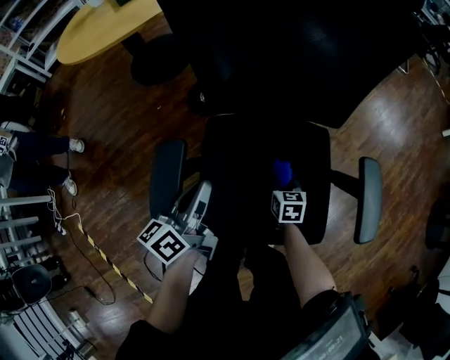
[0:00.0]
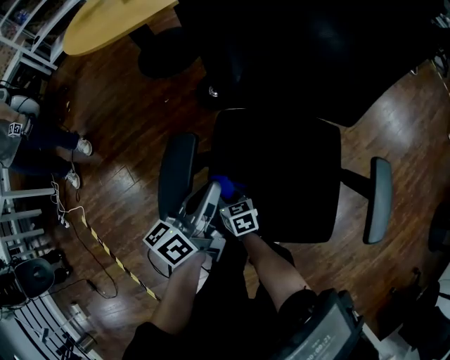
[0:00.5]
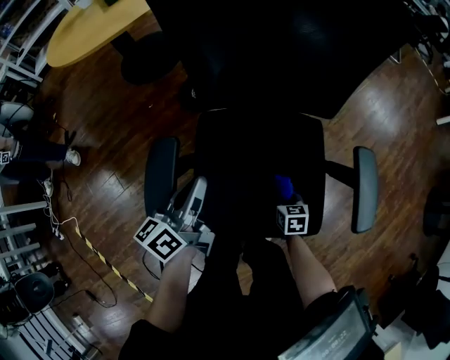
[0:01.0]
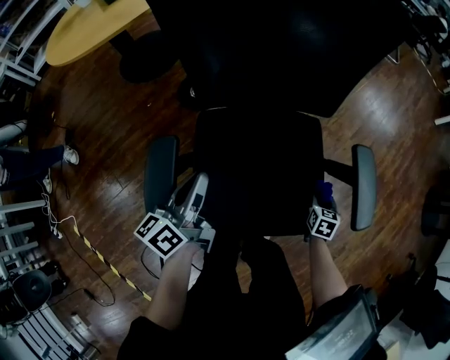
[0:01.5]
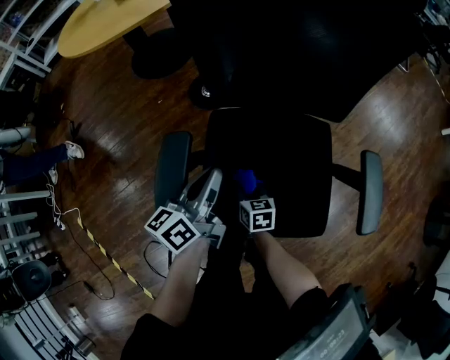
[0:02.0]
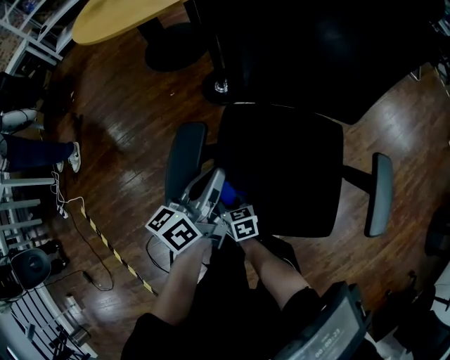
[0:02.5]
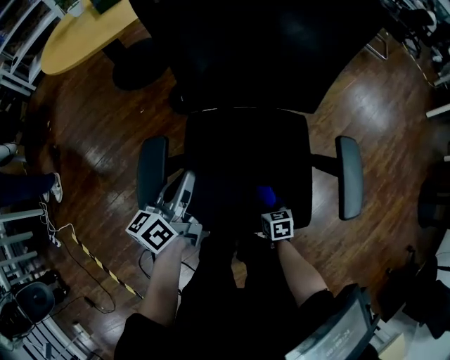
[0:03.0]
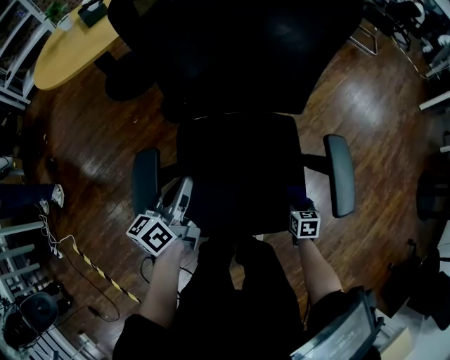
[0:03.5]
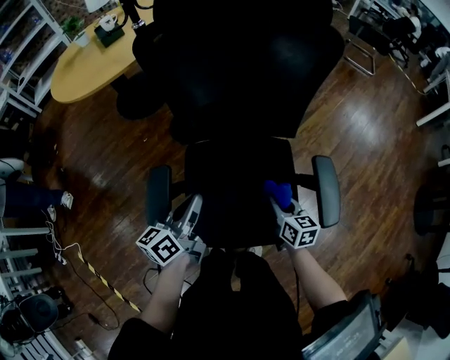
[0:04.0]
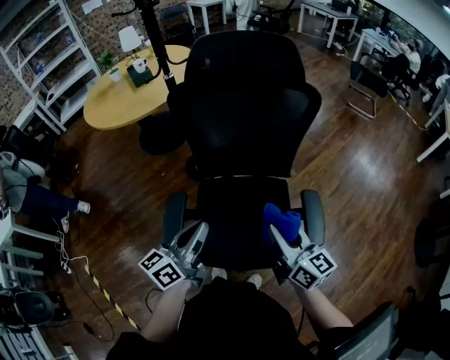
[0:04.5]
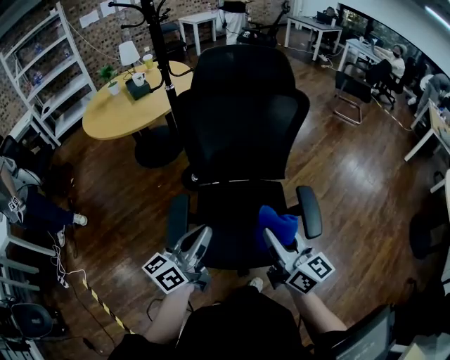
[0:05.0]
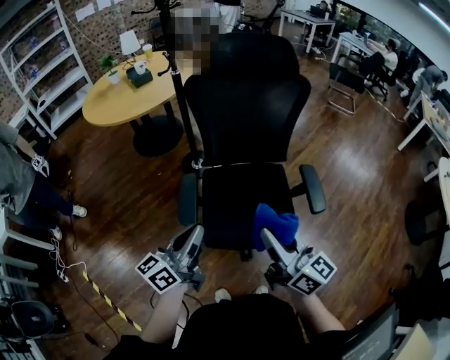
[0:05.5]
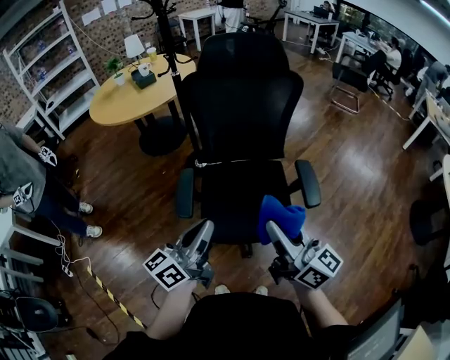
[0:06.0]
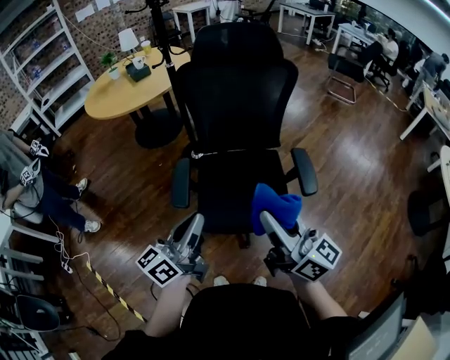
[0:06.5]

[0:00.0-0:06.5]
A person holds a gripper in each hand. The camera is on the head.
0:02.0 to 0:04.5: The left gripper goes roughly 20 cm upward and backward. The right gripper travels upward and to the right by roughly 50 cm, and angles its fingers upward, by about 40 degrees.
0:04.5 to 0:06.5: The left gripper shifts some 20 cm backward. The right gripper heads backward and upward, covering roughly 25 cm.

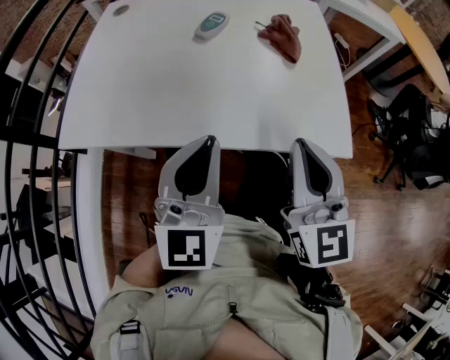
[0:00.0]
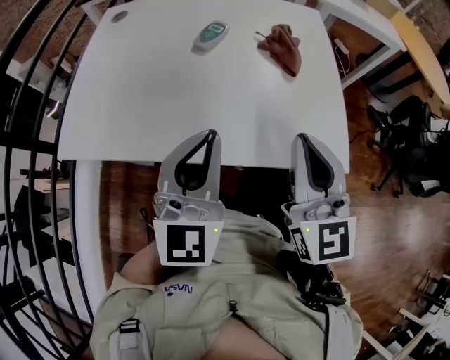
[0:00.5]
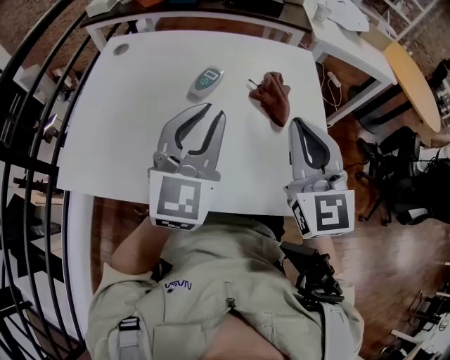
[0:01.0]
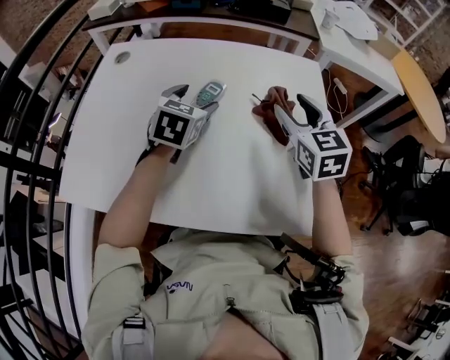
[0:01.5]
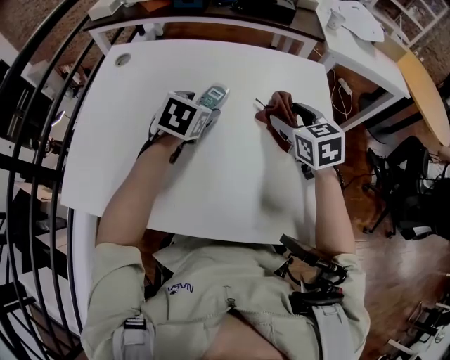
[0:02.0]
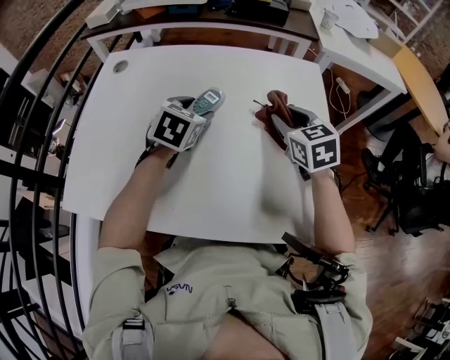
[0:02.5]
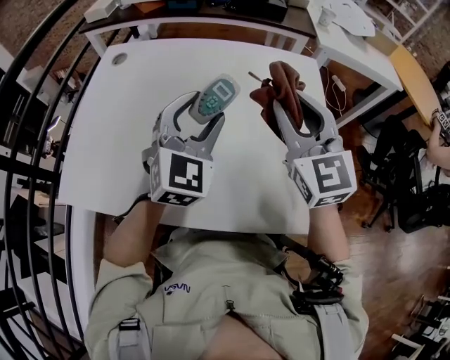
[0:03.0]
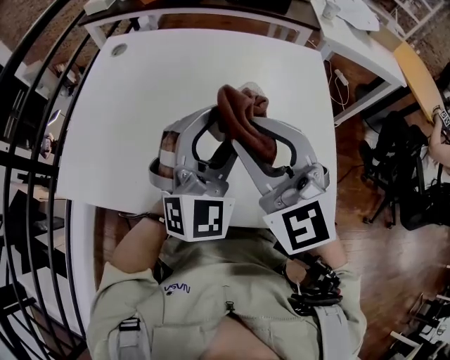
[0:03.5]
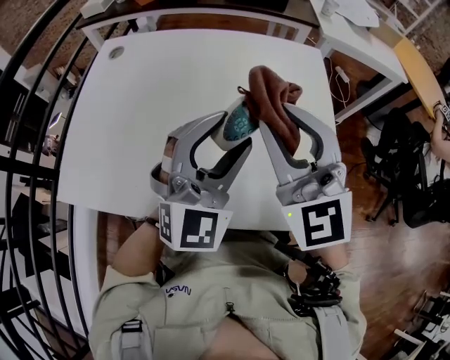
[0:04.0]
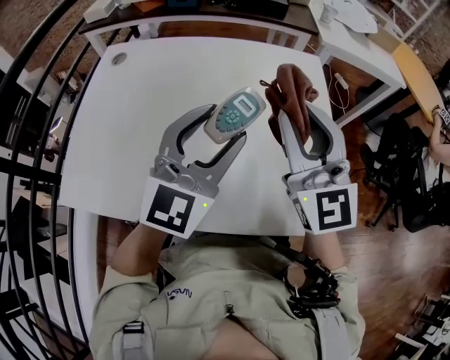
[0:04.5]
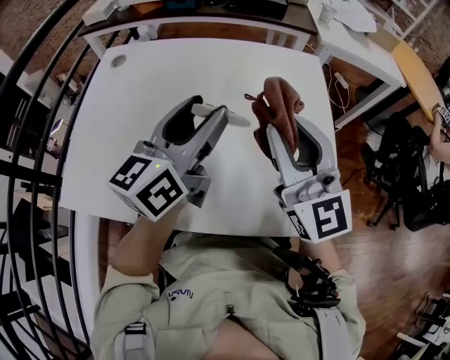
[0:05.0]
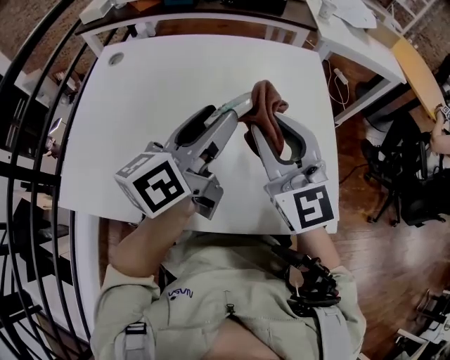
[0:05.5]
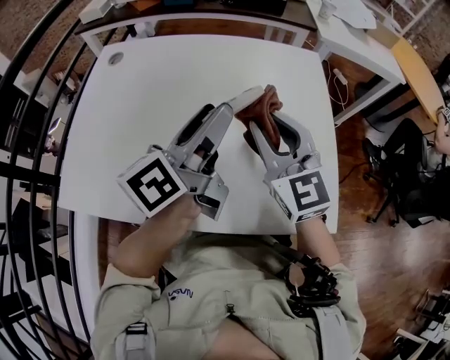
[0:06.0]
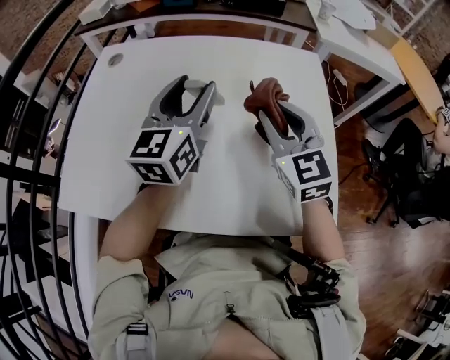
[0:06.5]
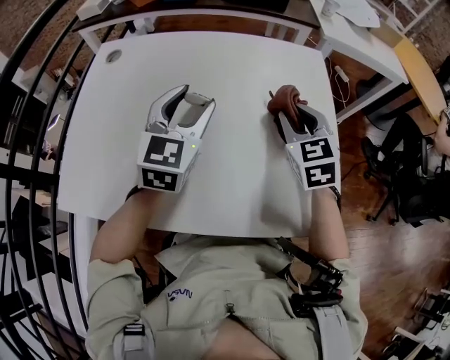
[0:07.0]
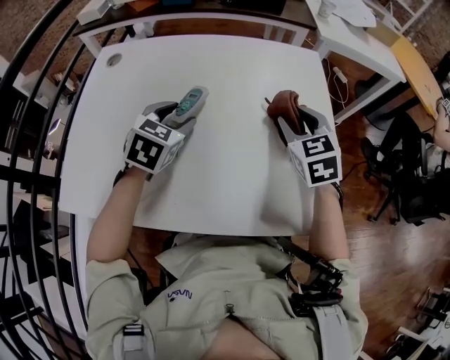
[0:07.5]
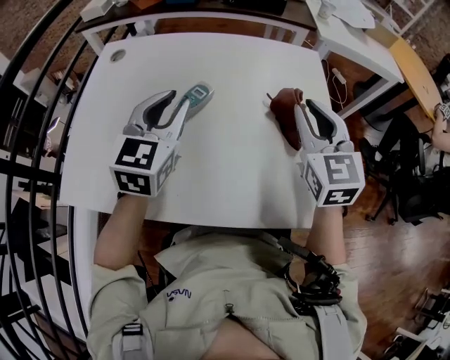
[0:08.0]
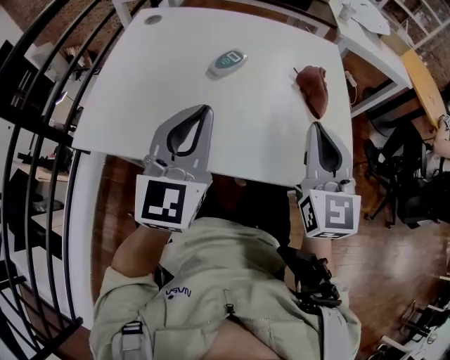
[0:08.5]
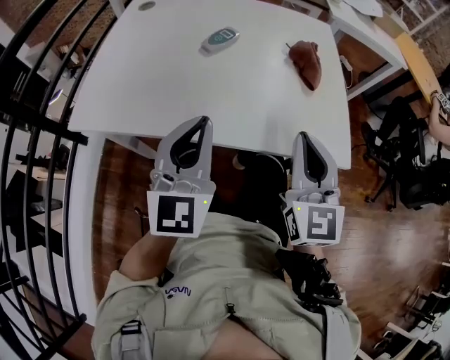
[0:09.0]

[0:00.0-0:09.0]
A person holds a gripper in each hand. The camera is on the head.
0:00.0 to 0:02.0: Both grippers travel together forward, approximately 35 cm. The right gripper rotates roughly 30 degrees, and opens. Meanwhile the left gripper tips its fingers downward by some 40 degrees, and opens its fingers.
0:02.0 to 0:04.5: Both grippers travel together upward and backward, approximately 20 cm. The right gripper tilts its fingers some 40 degrees upward, and closes up. The left gripper tilts its fingers about 50 degrees upward.
0:04.5 to 0:07.0: The left gripper is displaced forward, downward and to the left by about 15 cm, and swivels roughly 20 degrees. Meanwhile the right gripper heads downward and forward, covering about 20 cm, and tilts its fingers about 40 degrees downward.
0:07.0 to 0:09.0: The grippers both shift backward by about 25 cm. The left gripper closes, while the right gripper swivels approximately 30 degrees, and closes its fingers.

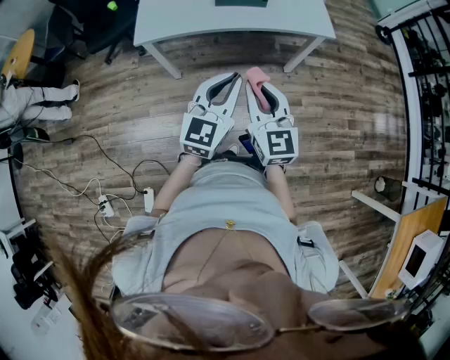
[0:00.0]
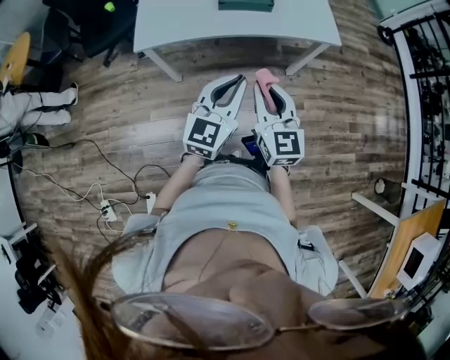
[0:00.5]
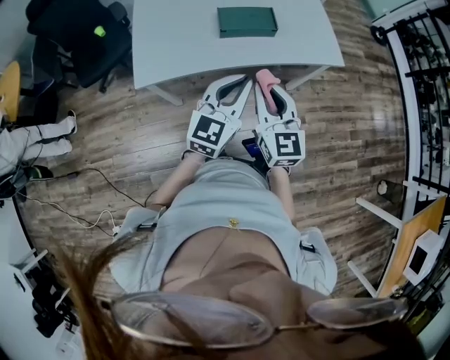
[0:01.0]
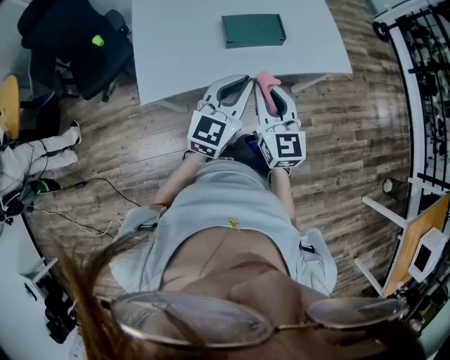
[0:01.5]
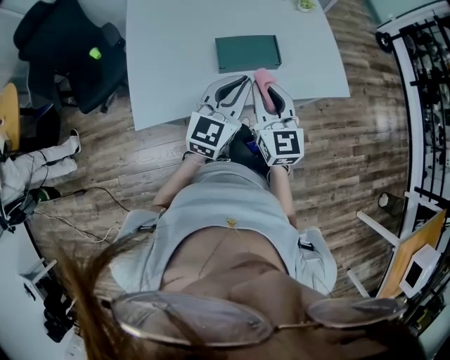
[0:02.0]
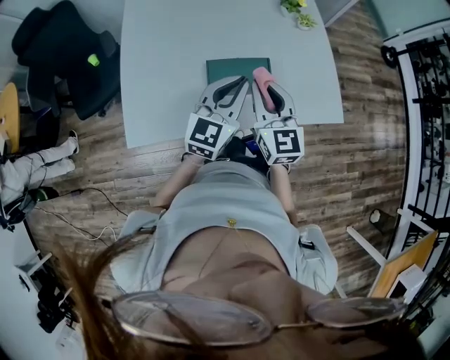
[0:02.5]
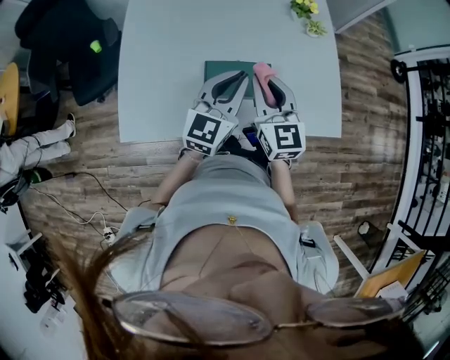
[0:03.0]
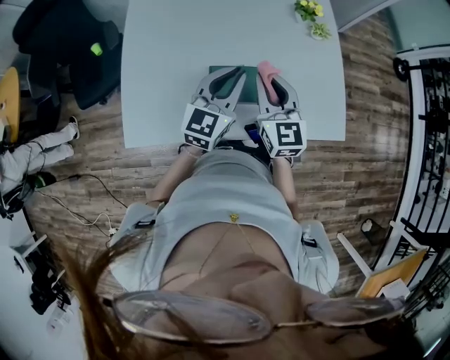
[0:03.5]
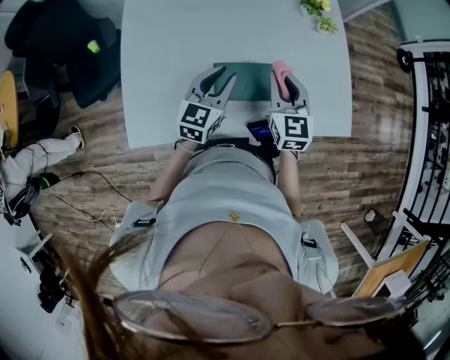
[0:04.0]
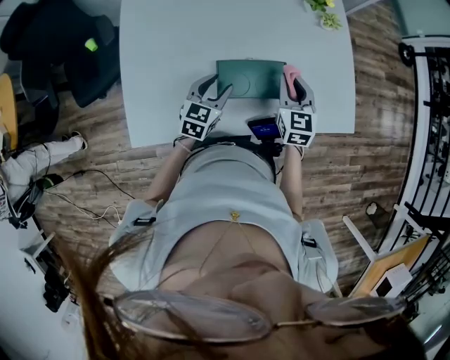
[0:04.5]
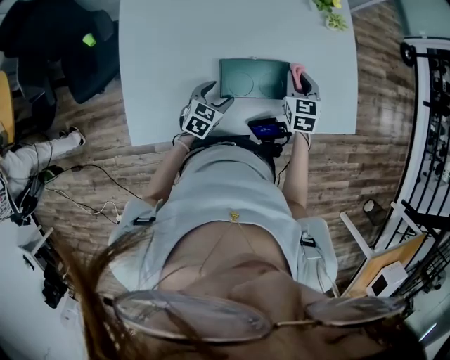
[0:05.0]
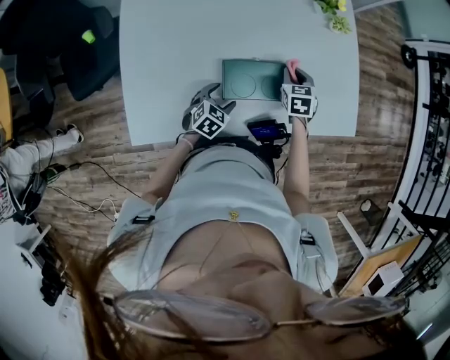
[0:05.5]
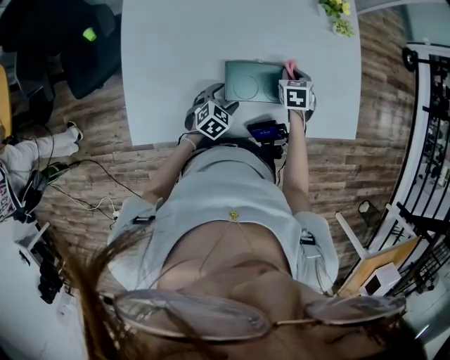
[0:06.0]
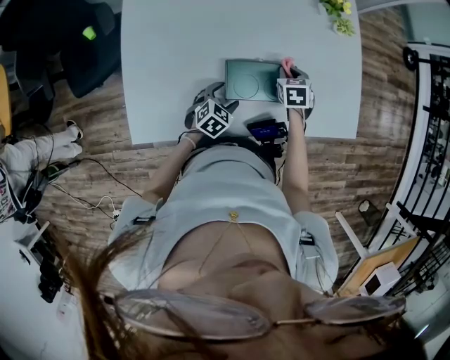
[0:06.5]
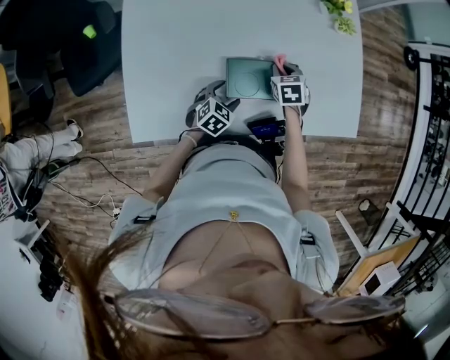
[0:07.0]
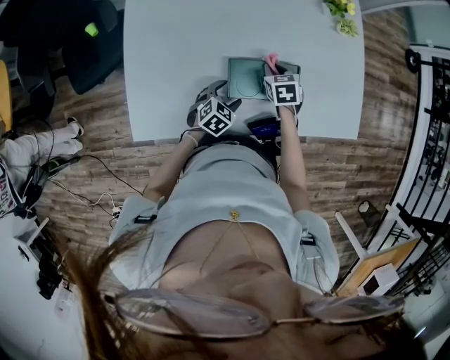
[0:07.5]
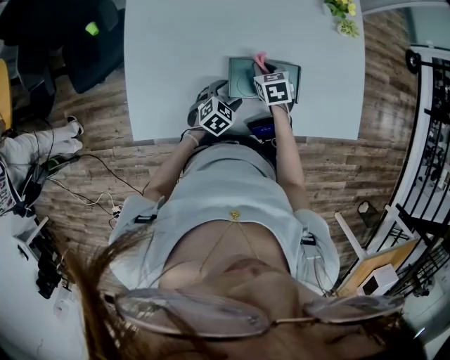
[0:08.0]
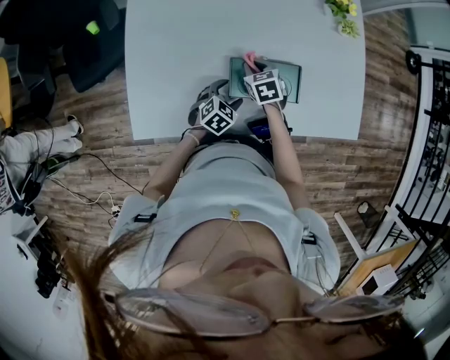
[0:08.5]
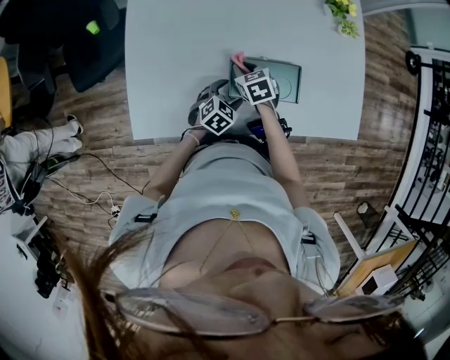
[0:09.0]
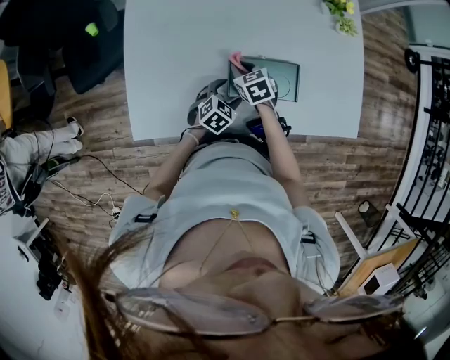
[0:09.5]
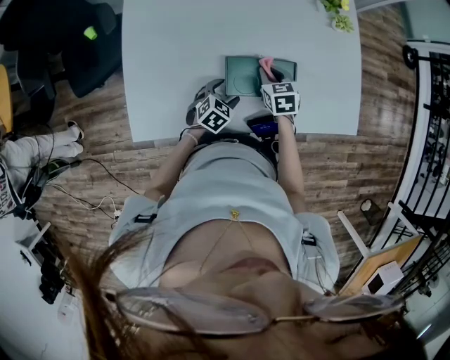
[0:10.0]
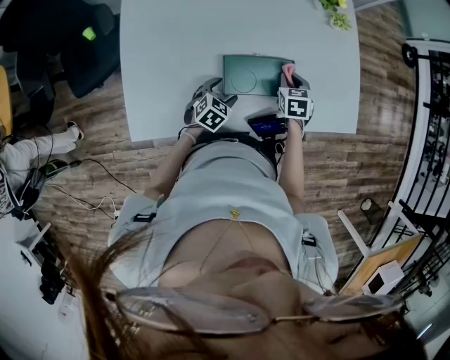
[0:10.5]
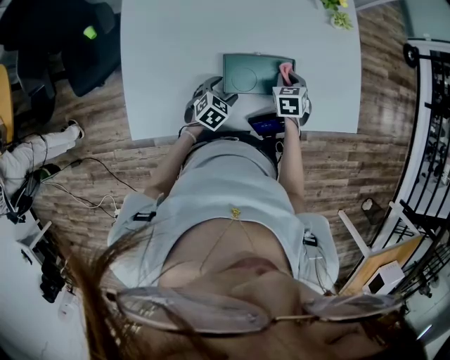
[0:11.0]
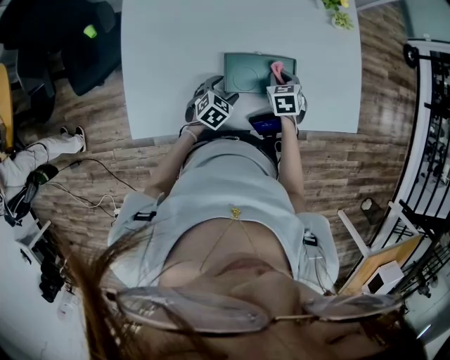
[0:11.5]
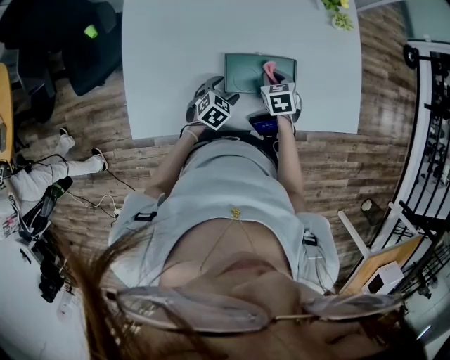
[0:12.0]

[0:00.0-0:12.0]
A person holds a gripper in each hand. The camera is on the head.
0:00.0 to 0:02.0: Both grippers move forward, about 35 cm.
0:02.0 to 0:04.0: The left gripper shifts about 20 cm forward and downward. Meanwhile the right gripper travels forward by approximately 20 cm.
0:04.0 to 0:06.0: The grippers both shift downward by roughly 20 cm. The left gripper tips its fingers downward by approximately 30 degrees, and opens its fingers. The right gripper tips its fingers downward by approximately 40 degrees.
0:06.0 to 0:08.0: The right gripper is displaced to the left by roughly 10 cm.
0:08.0 to 0:10.0: The right gripper moves some 5 cm to the left and comes back.
0:10.0 to 0:12.0: The right gripper goes to the right and returns, approximately 10 cm each way.
